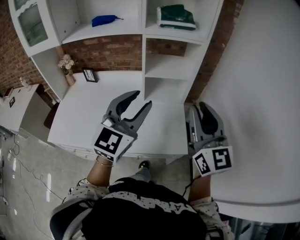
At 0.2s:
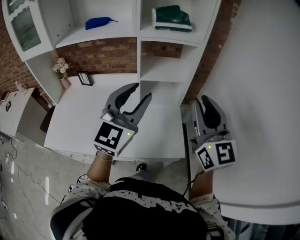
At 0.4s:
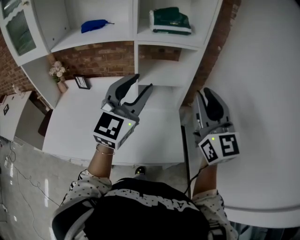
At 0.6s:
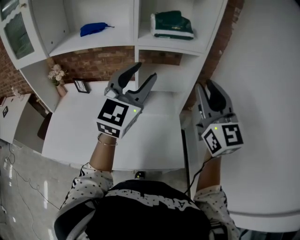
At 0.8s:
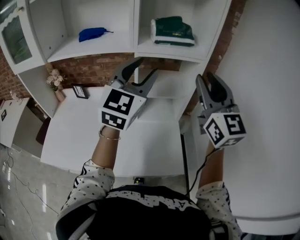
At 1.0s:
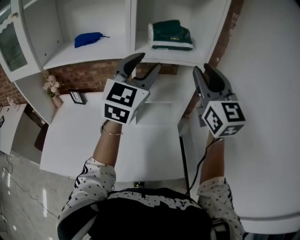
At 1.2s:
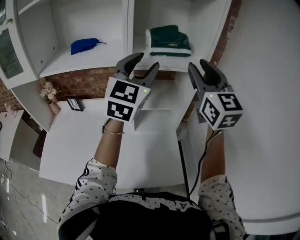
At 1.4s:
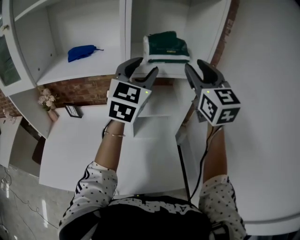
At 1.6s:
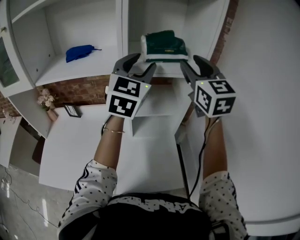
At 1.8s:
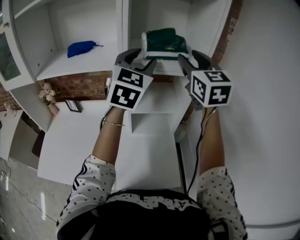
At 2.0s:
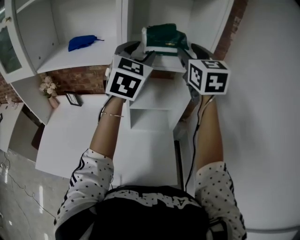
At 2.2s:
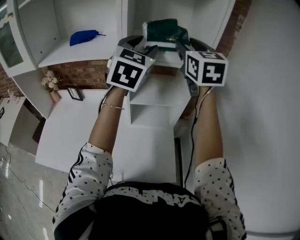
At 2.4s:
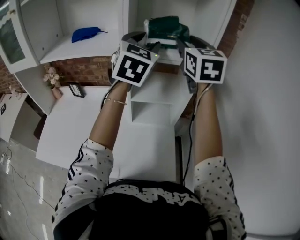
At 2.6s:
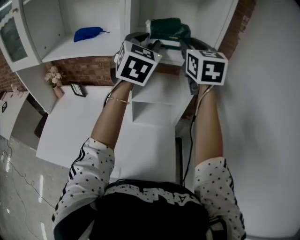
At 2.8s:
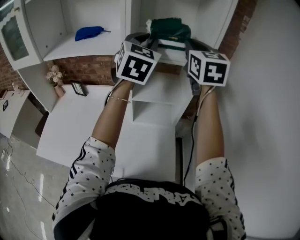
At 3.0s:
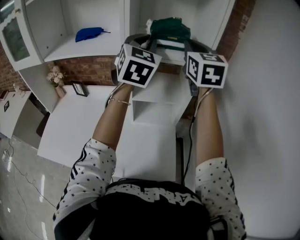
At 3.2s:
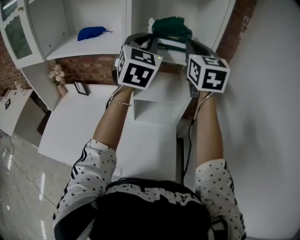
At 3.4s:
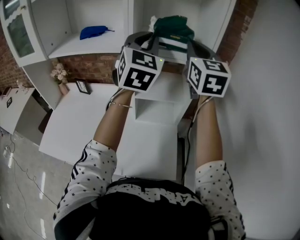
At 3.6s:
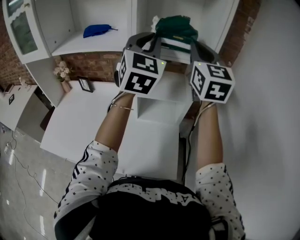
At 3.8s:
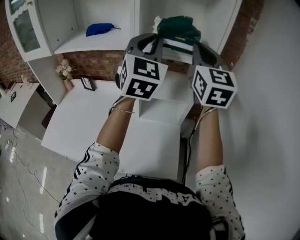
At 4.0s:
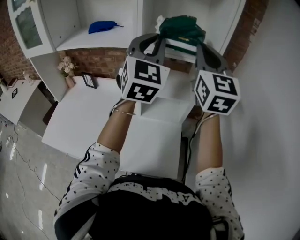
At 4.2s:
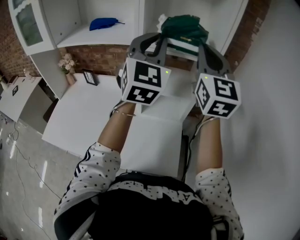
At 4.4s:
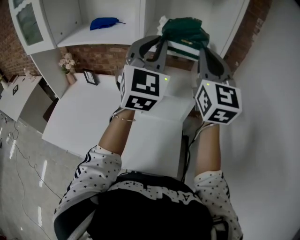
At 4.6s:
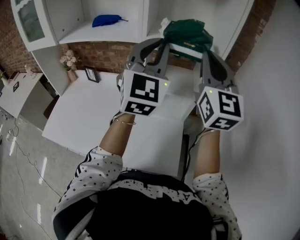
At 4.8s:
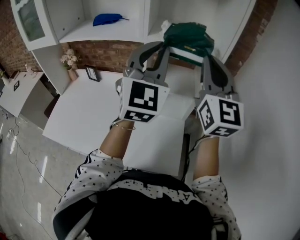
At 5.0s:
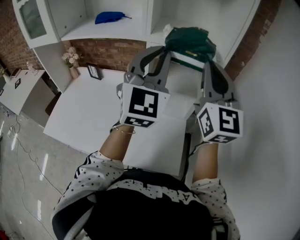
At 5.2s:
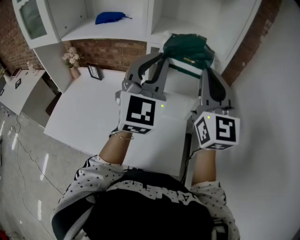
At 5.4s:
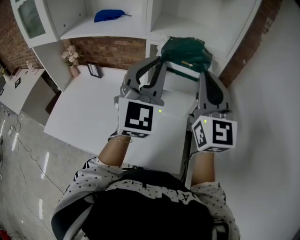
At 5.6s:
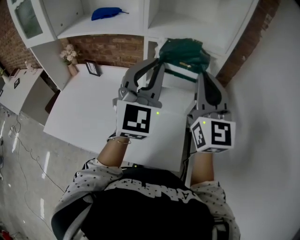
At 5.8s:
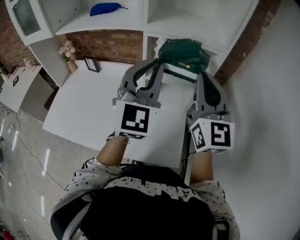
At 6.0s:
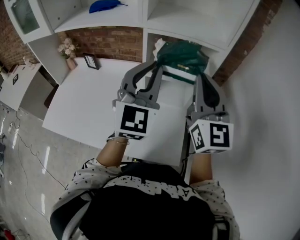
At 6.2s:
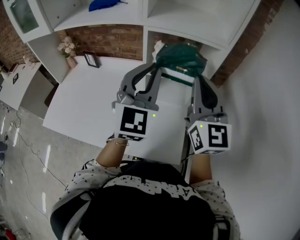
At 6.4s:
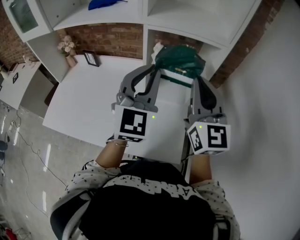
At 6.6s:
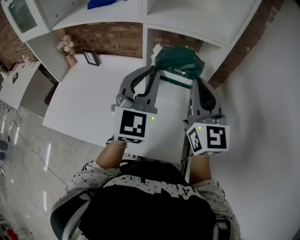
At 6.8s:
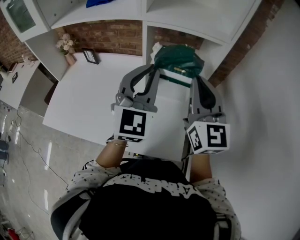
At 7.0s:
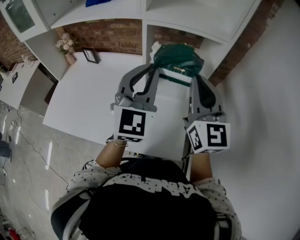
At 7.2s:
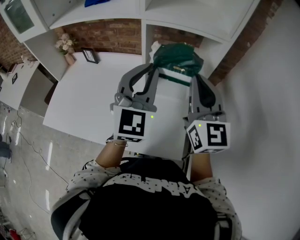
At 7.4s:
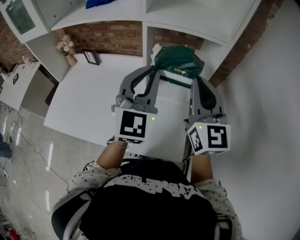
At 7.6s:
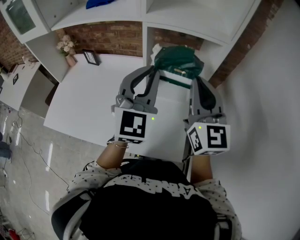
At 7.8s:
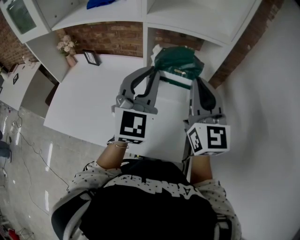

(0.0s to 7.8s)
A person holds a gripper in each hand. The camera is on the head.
0.0s - 1.6s: The two grippers go roughly 30 cm forward and upward. The right gripper opens up.
1.6s - 3.2s: The left gripper closes its fingers; the right gripper closes up.
3.2s - 4.6s: Both grippers move backward, about 10 cm.
4.6s - 6.2s: The left gripper goes some 10 cm downward. The right gripper goes about 10 cm downward and backward.
6.2s - 7.8s: The grippers move only a little.

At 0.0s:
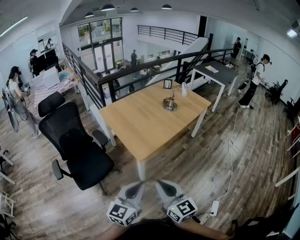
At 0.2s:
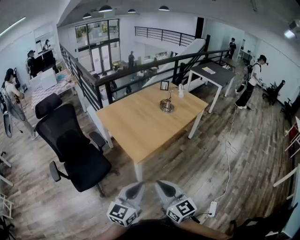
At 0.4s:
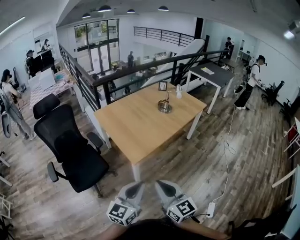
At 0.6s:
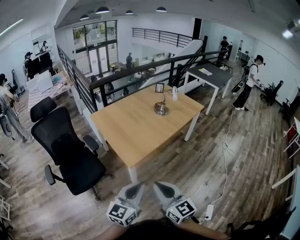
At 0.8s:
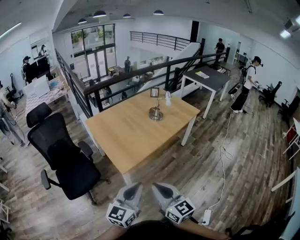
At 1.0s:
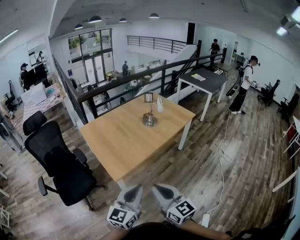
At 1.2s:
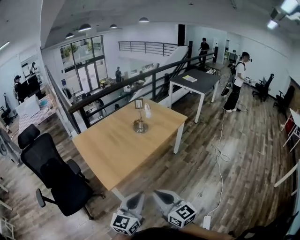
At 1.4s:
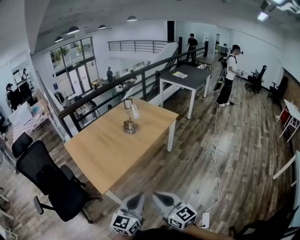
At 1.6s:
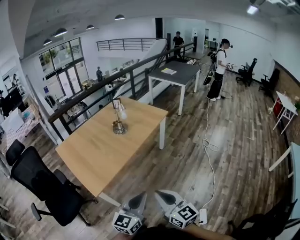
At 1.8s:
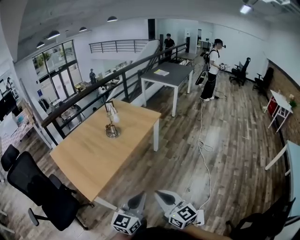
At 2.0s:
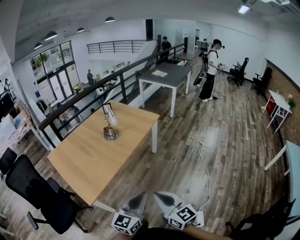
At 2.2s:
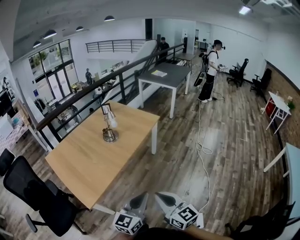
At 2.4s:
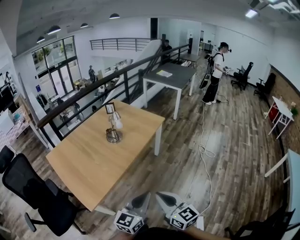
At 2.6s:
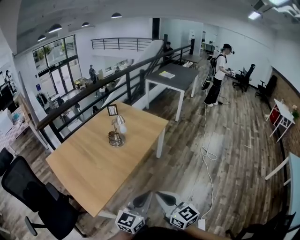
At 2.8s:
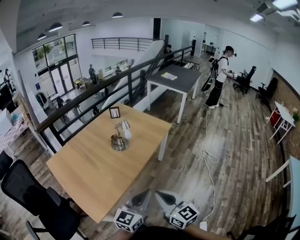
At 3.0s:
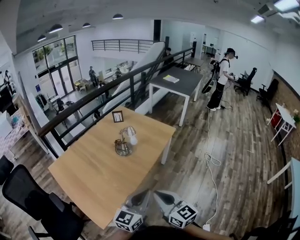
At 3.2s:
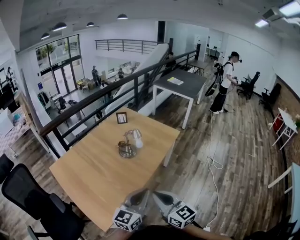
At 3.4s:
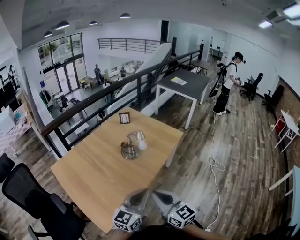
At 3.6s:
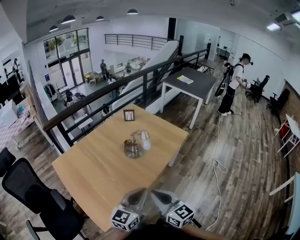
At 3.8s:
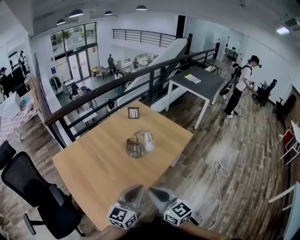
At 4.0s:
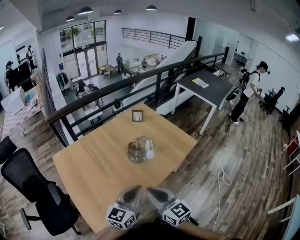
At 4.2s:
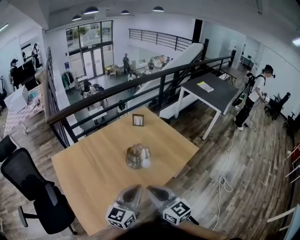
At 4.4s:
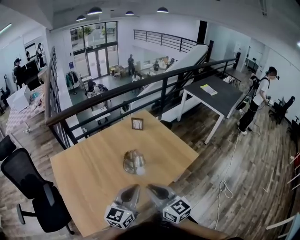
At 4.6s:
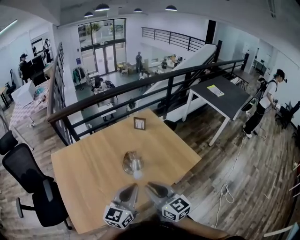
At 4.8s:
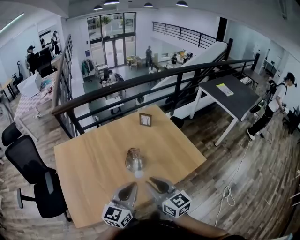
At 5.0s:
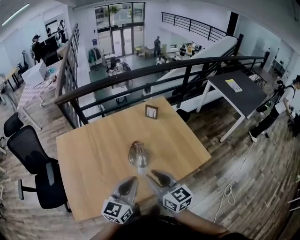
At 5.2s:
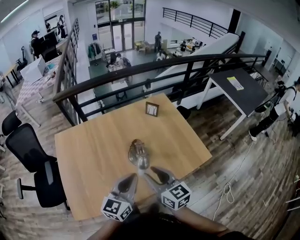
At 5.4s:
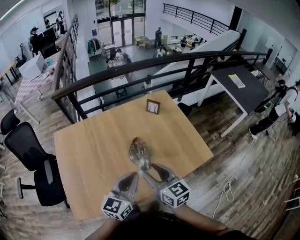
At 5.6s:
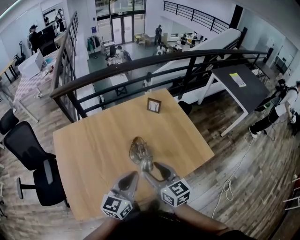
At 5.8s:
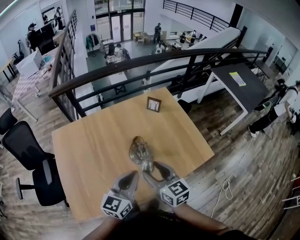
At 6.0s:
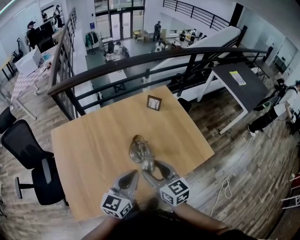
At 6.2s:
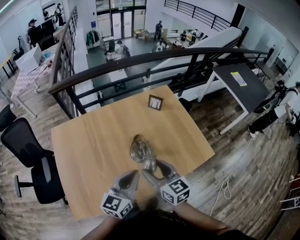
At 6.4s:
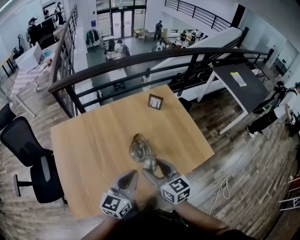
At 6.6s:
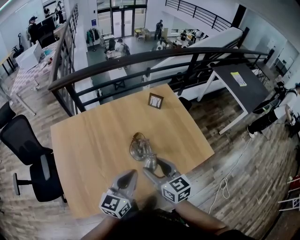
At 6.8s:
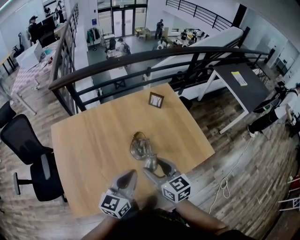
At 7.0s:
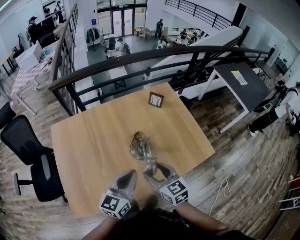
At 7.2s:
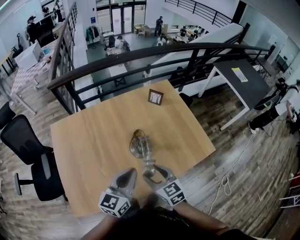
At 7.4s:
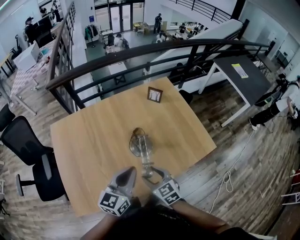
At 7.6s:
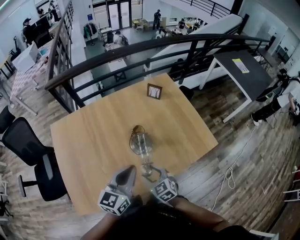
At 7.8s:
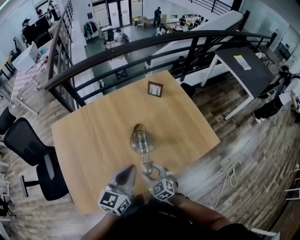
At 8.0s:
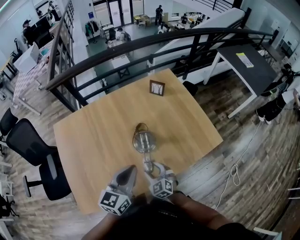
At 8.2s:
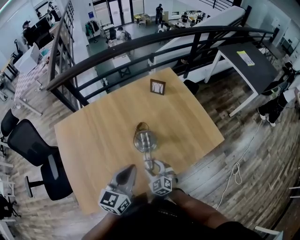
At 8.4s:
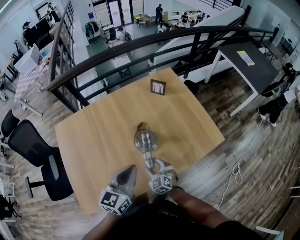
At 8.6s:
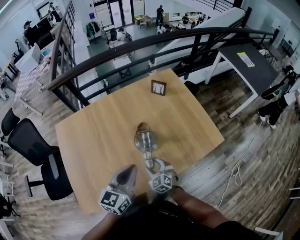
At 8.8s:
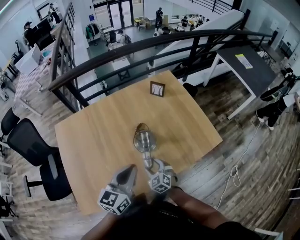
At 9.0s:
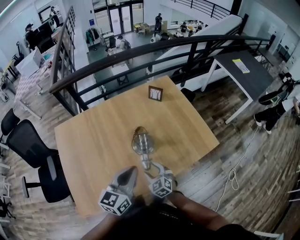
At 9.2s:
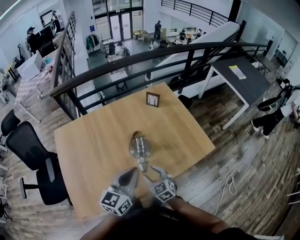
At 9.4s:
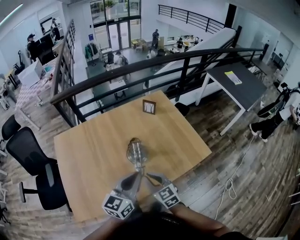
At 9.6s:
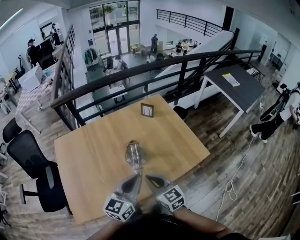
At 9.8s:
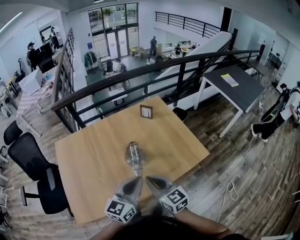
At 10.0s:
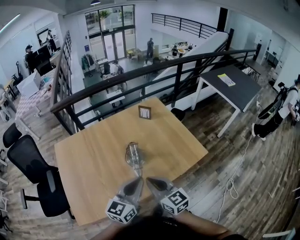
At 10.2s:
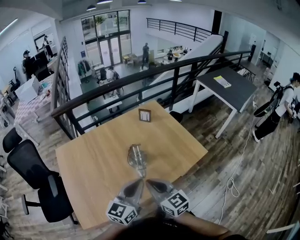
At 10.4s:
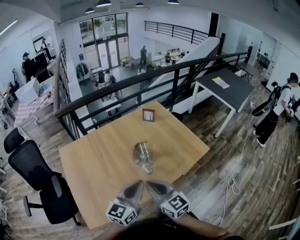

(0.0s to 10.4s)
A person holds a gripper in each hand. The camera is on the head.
0.0s - 1.4s: The left gripper shifts about 30 cm to the right and forward. The right gripper travels to the right by some 25 cm.
1.4s - 3.0s: Both grippers move forward, roughly 25 cm.
3.0s - 4.4s: The two grippers go about 25 cm forward. The right gripper swivels approximately 20 degrees. The left gripper rotates approximately 20 degrees.
4.4s - 6.0s: The left gripper travels forward by about 10 cm; the right gripper travels forward and downward by some 15 cm, and opens.
6.0s - 7.4s: The right gripper goes approximately 10 cm downward, and rotates roughly 20 degrees.
7.4s - 9.0s: The right gripper travels downward by about 10 cm.
9.0s - 10.4s: The right gripper is displaced upward and backward by some 30 cm, angles its fingers upward, by approximately 30 degrees, and closes up, while the left gripper heads backward, covering some 10 cm.

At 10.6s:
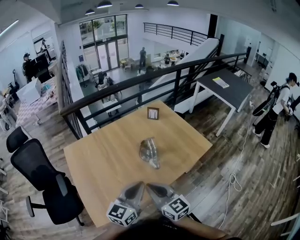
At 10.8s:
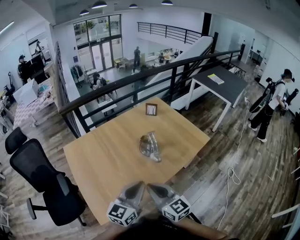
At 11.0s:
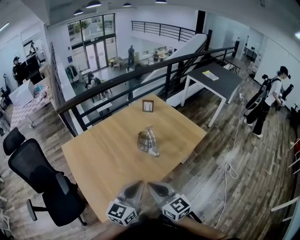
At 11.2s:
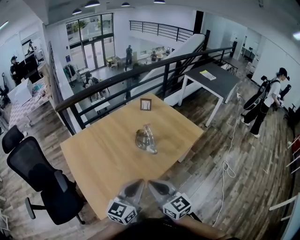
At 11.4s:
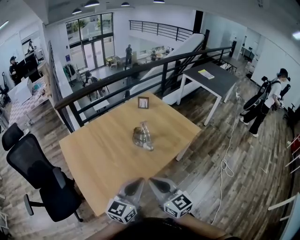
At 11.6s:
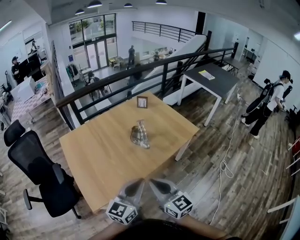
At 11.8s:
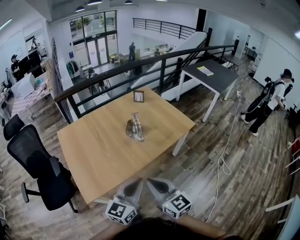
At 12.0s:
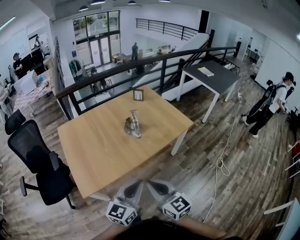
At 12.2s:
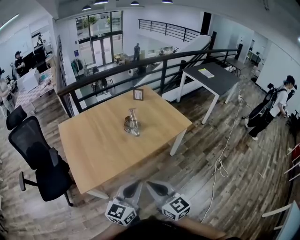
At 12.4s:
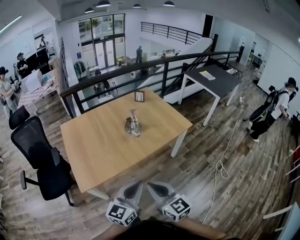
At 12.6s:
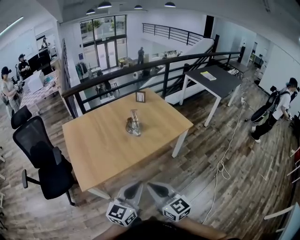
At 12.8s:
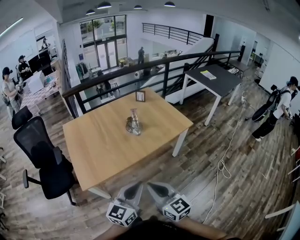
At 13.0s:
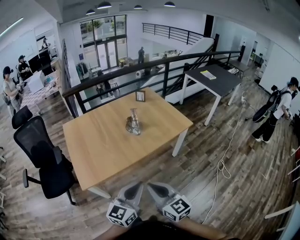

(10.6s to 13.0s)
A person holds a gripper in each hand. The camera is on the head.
10.6s - 11.8s: The grippers both shift backward by about 20 cm.
11.8s - 13.0s: Both grippers move backward and to the right, approximately 10 cm.

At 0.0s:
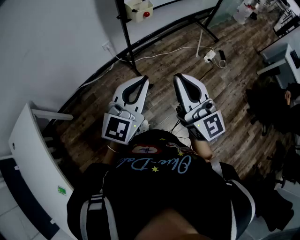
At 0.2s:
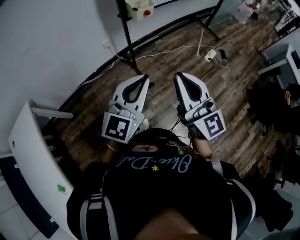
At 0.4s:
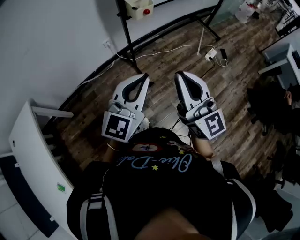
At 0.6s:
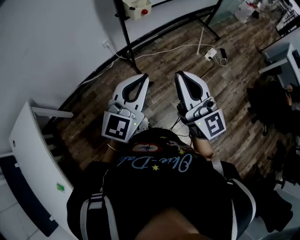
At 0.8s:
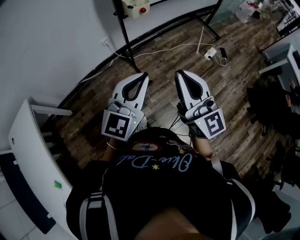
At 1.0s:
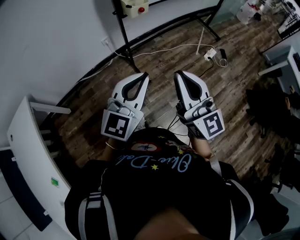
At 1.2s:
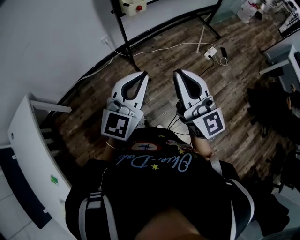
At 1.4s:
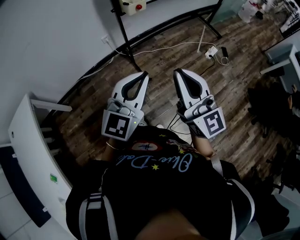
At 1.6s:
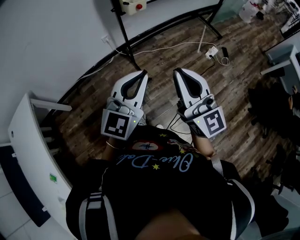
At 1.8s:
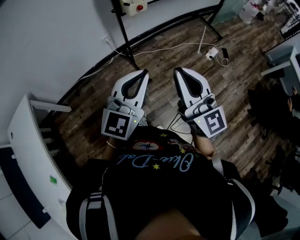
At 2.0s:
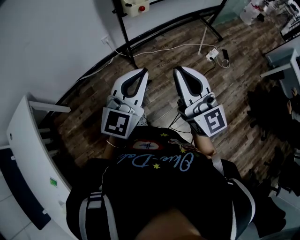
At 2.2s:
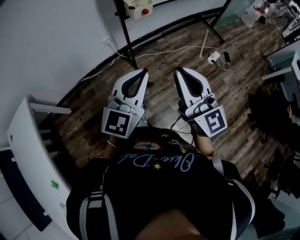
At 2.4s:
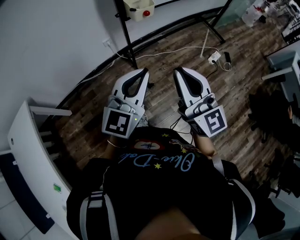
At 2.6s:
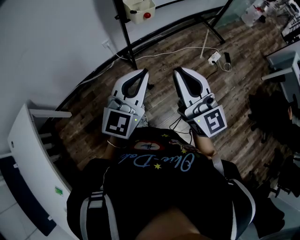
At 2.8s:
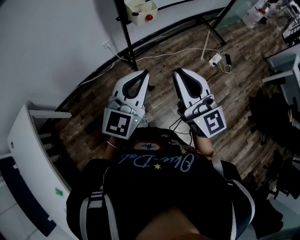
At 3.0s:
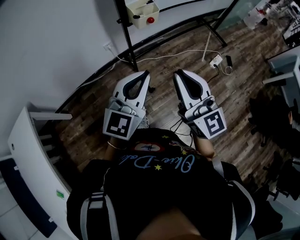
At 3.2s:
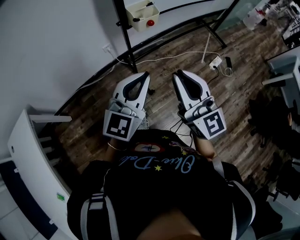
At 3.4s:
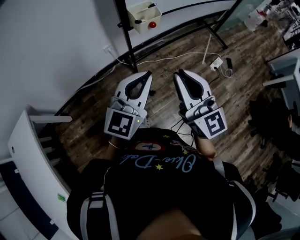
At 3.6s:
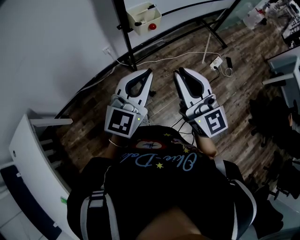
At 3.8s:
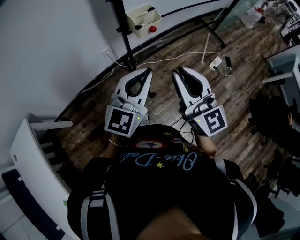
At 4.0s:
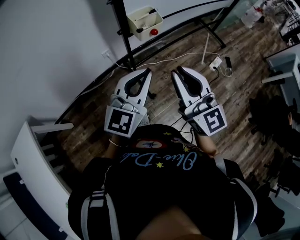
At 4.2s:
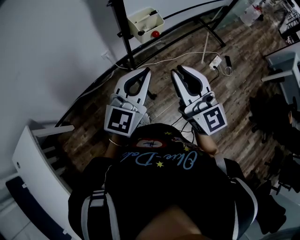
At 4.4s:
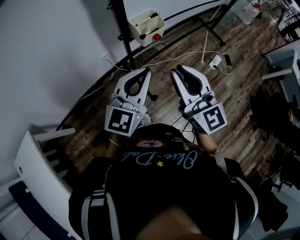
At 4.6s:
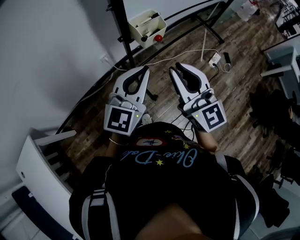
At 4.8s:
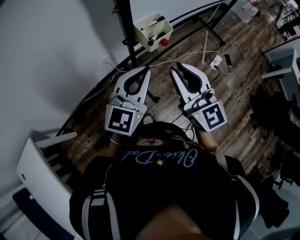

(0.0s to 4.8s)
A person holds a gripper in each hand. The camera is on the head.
0.0s - 1.6s: The two grippers go about 5 cm to the right.
1.6s - 3.2s: Both grippers move forward, roughly 15 cm.
3.2s - 4.8s: Both grippers move forward and to the left, approximately 15 cm.
